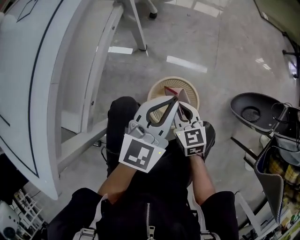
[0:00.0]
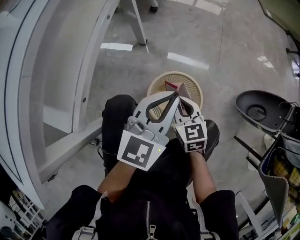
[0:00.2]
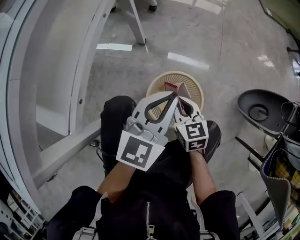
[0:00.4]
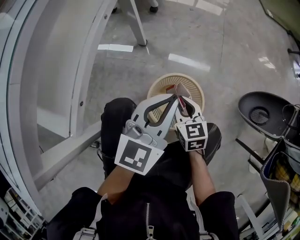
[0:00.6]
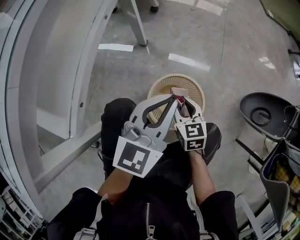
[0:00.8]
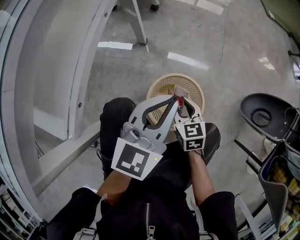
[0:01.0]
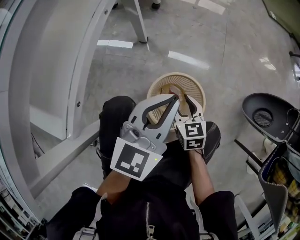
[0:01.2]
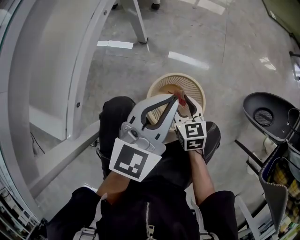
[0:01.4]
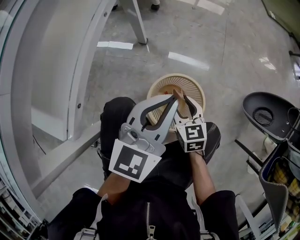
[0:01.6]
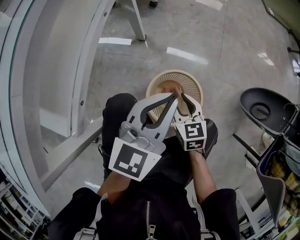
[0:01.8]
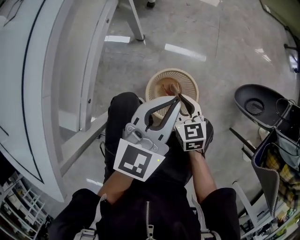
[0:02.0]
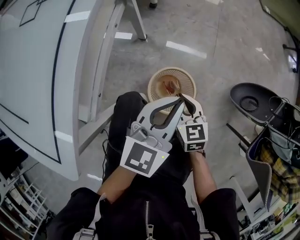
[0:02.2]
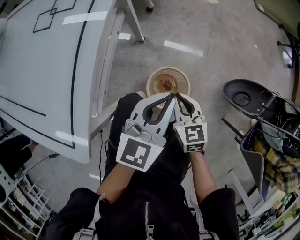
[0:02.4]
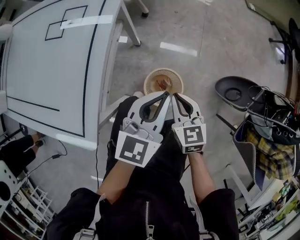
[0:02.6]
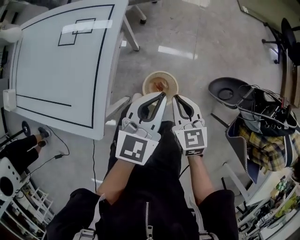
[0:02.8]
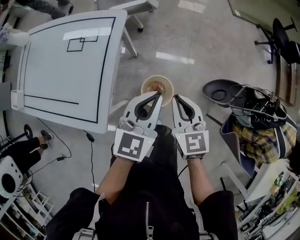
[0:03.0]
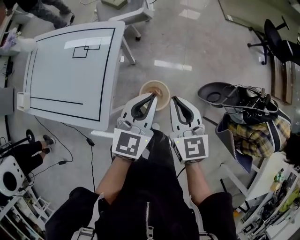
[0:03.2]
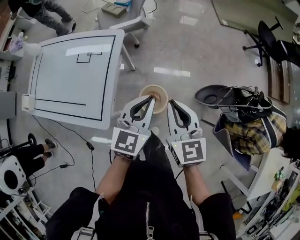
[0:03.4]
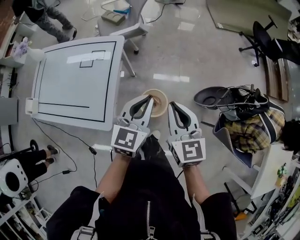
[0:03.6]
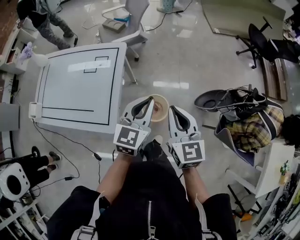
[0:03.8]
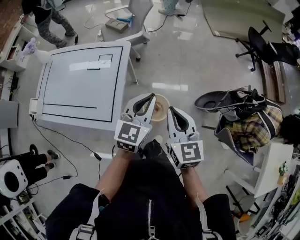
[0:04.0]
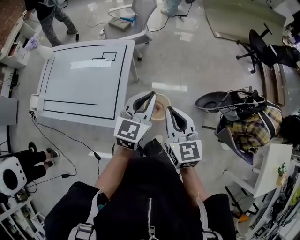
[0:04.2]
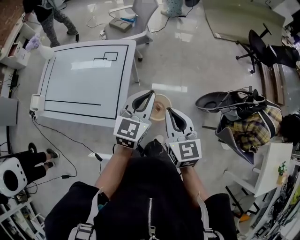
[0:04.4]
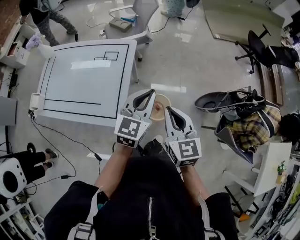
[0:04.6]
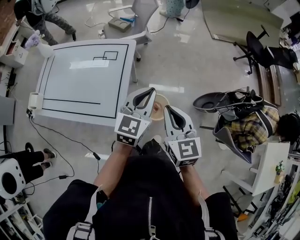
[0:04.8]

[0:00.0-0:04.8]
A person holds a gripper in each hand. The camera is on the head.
0:00.0 to 0:01.6: The right gripper goes some 10 cm downward, and opens its fingers.
0:01.6 to 0:03.2: The grippers both shift upward by about 60 cm. The right gripper closes up.
0:03.2 to 0:04.8: The right gripper goes about 15 cm backward, upward and to the left, while the left gripper is displaced upward, to the left and backward by some 10 cm.

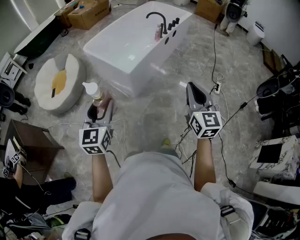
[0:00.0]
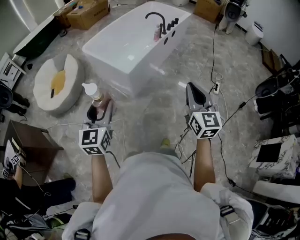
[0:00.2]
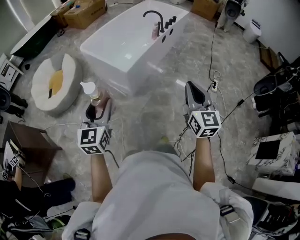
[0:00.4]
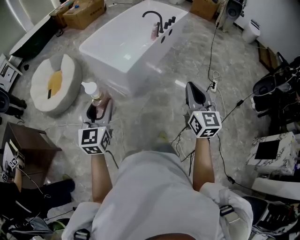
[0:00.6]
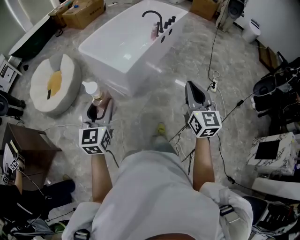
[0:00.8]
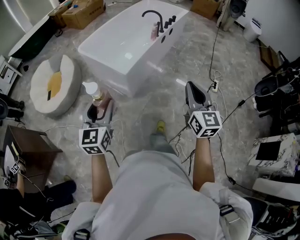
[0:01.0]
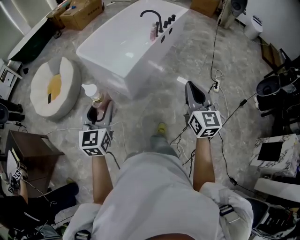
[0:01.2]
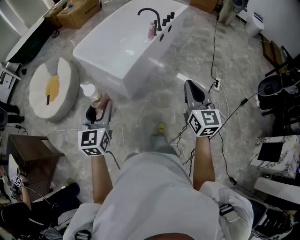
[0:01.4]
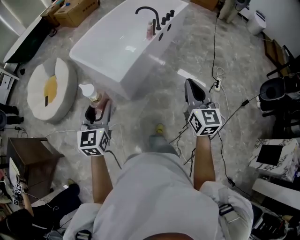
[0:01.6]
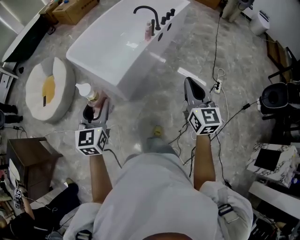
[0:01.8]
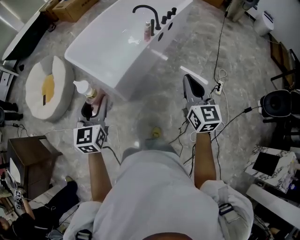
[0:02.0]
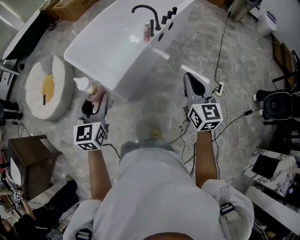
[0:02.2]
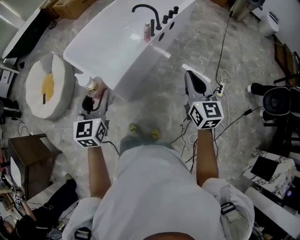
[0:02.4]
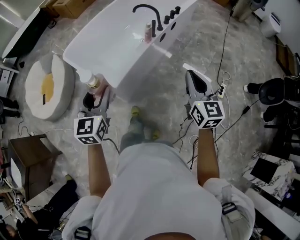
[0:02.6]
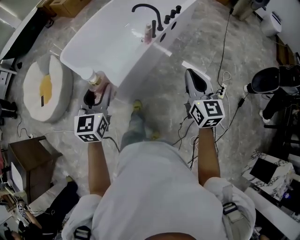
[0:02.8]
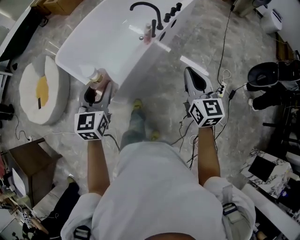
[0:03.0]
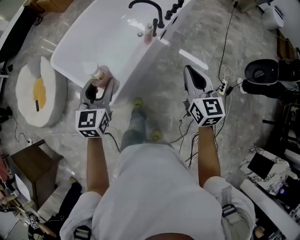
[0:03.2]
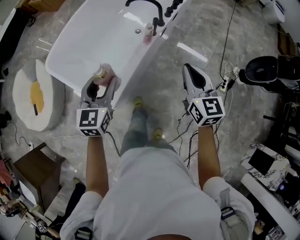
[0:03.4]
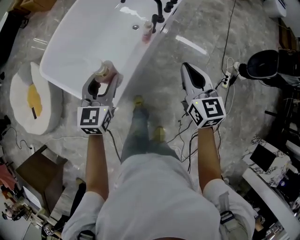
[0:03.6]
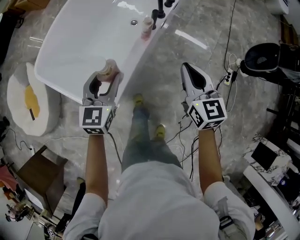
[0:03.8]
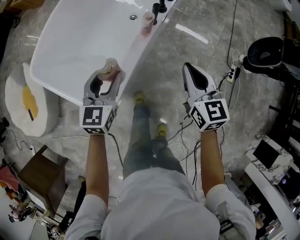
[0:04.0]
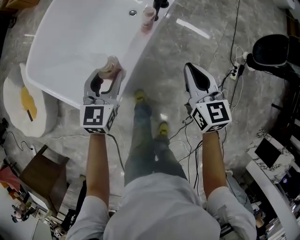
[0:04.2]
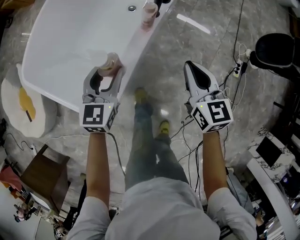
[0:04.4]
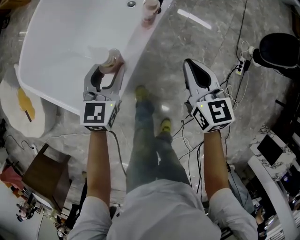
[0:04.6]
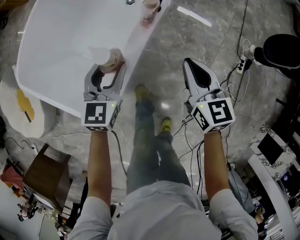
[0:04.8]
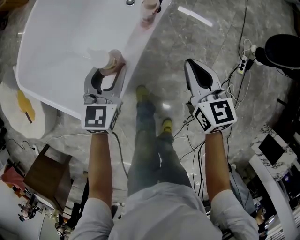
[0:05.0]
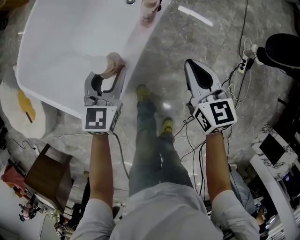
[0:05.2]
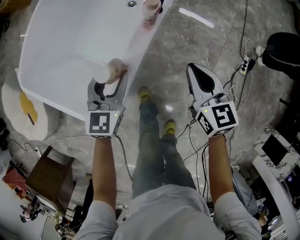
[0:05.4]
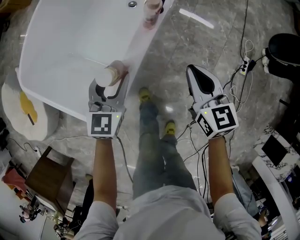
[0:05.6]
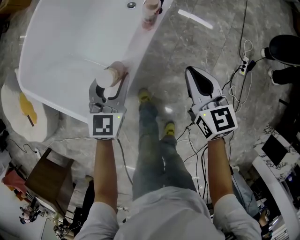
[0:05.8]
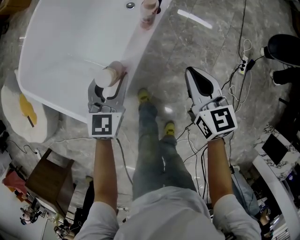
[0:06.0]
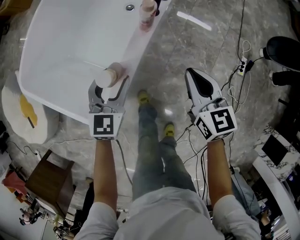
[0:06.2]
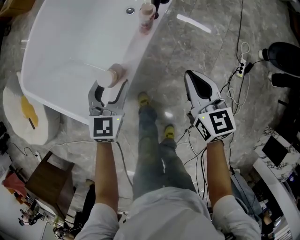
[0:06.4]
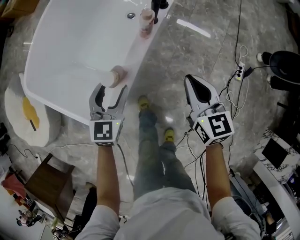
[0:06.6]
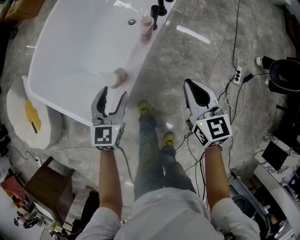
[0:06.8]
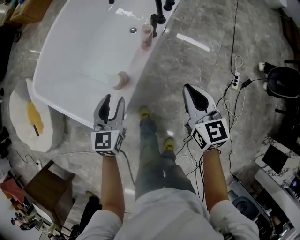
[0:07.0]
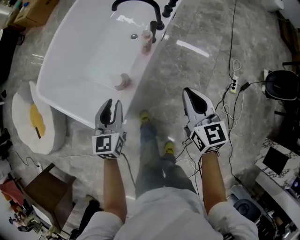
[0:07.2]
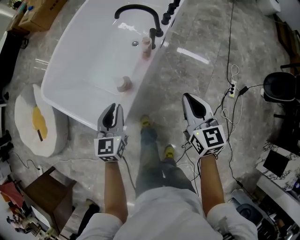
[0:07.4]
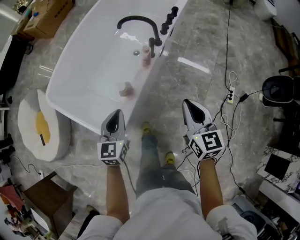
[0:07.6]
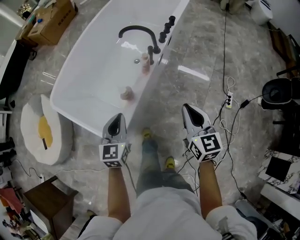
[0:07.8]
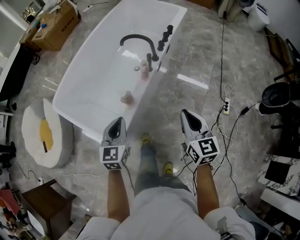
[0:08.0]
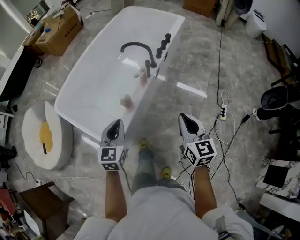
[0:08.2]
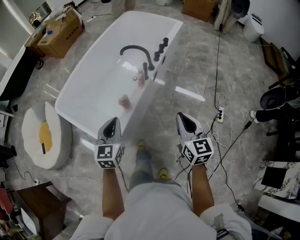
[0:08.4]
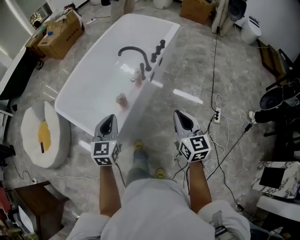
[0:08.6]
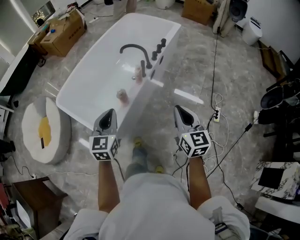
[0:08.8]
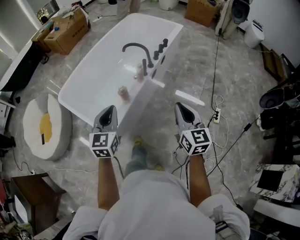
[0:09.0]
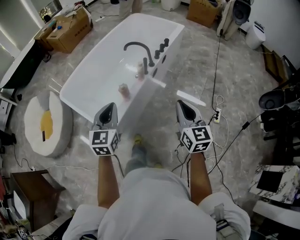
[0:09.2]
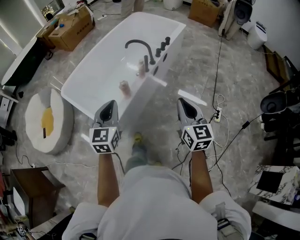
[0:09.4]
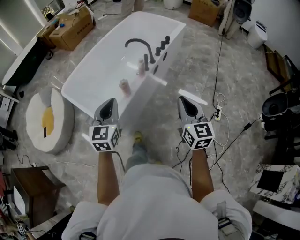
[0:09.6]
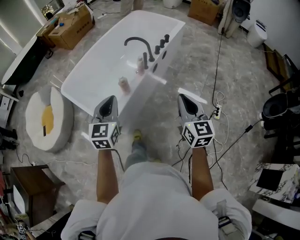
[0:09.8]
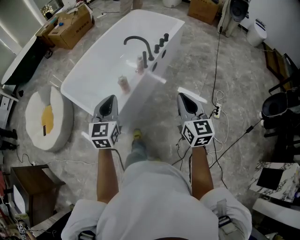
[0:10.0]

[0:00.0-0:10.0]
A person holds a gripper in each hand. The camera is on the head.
0:00.0 to 0:01.4: Both grippers move forward, about 15 cm.
0:01.4 to 0:02.8: The grippers both shift forward by approximately 35 cm.
0:02.8 to 0:04.2: Both grippers move forward and downward, some 40 cm.
0:04.2 to 0:05.8: Both grippers travel together downward, some 10 cm.
0:05.8 to 0:07.2: Both grippers move upward and backward, some 15 cm. The left gripper closes.
0:07.2 to 0:08.6: The two grippers go roughly 25 cm upward and backward. The left gripper closes its fingers.
0:08.6 to 0:10.0: Both grippers move backward and upward, some 10 cm.

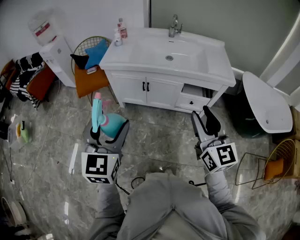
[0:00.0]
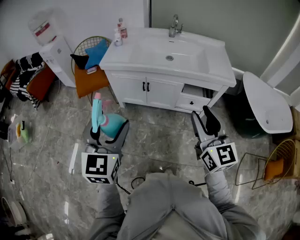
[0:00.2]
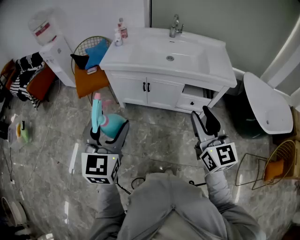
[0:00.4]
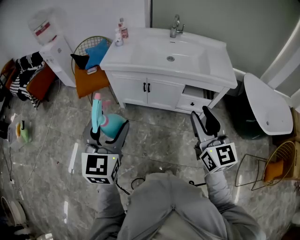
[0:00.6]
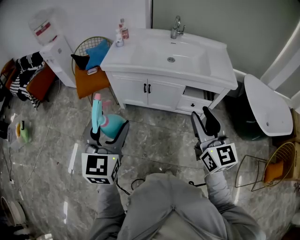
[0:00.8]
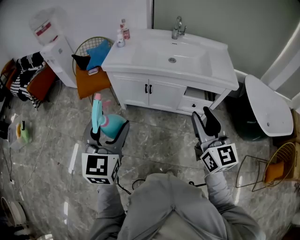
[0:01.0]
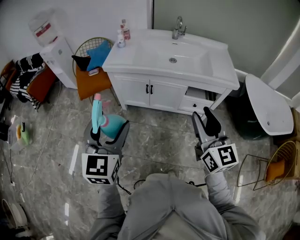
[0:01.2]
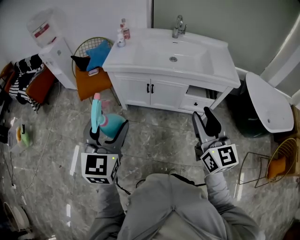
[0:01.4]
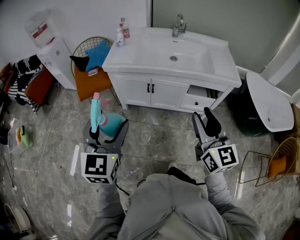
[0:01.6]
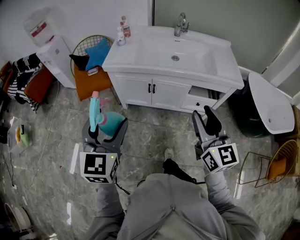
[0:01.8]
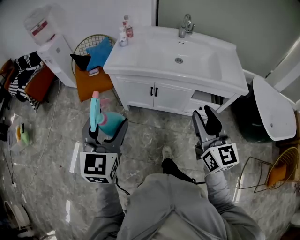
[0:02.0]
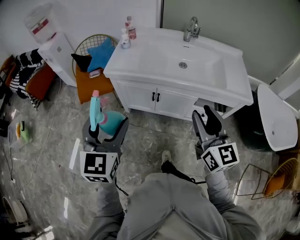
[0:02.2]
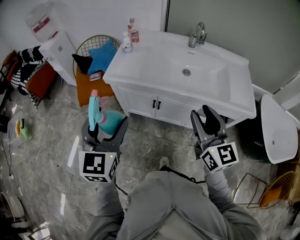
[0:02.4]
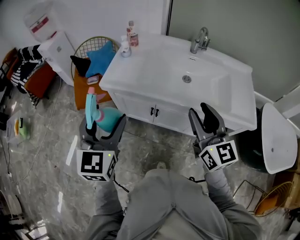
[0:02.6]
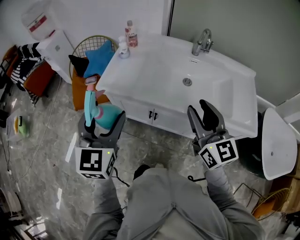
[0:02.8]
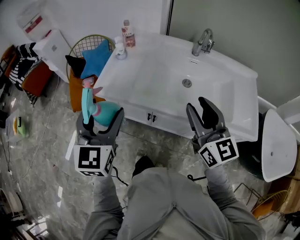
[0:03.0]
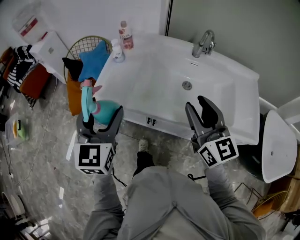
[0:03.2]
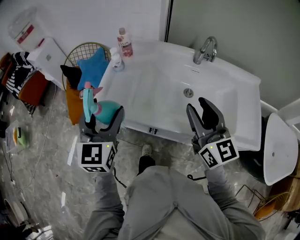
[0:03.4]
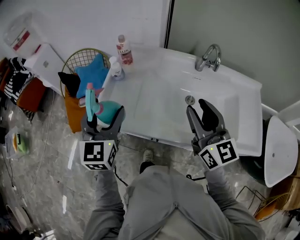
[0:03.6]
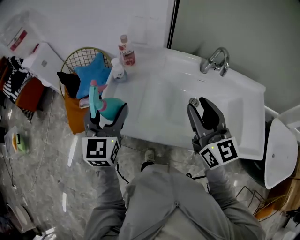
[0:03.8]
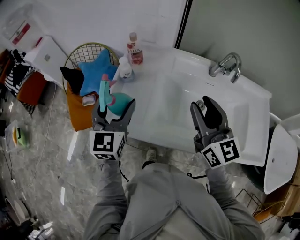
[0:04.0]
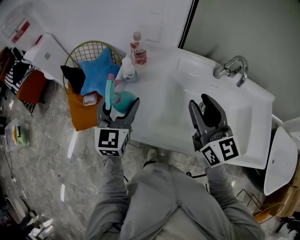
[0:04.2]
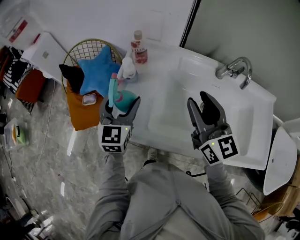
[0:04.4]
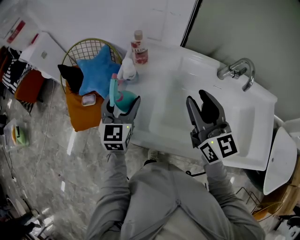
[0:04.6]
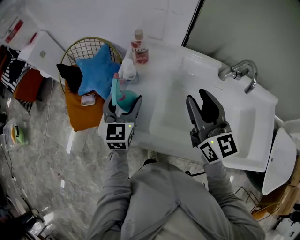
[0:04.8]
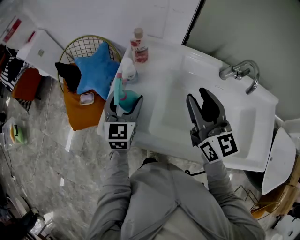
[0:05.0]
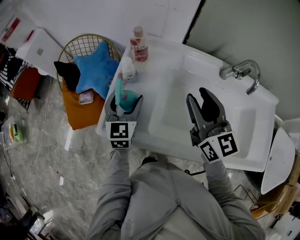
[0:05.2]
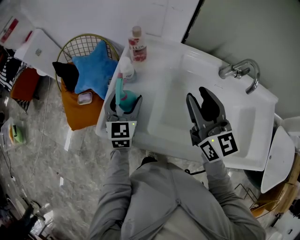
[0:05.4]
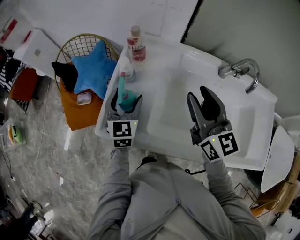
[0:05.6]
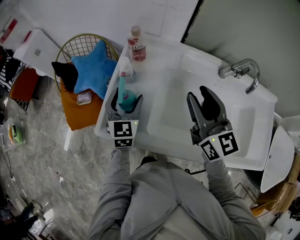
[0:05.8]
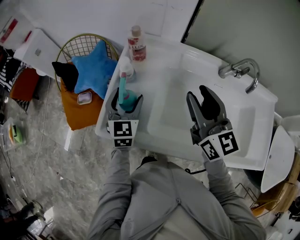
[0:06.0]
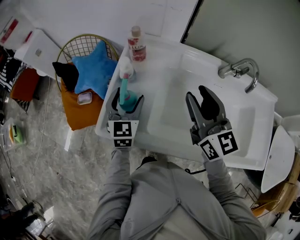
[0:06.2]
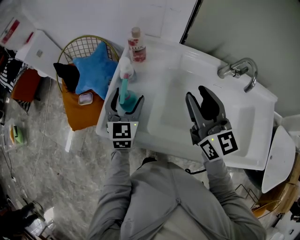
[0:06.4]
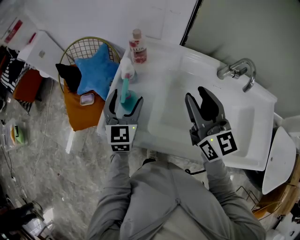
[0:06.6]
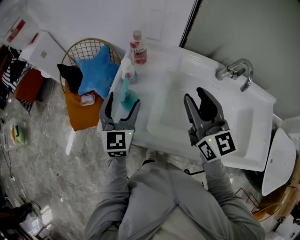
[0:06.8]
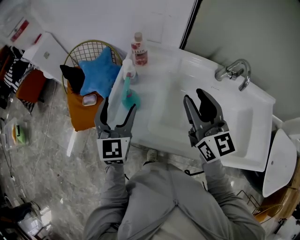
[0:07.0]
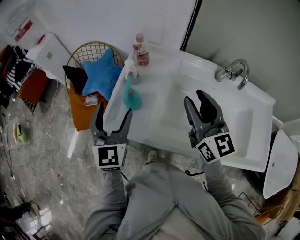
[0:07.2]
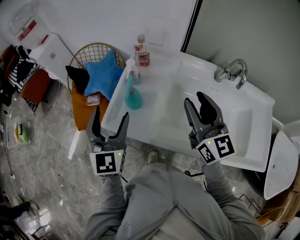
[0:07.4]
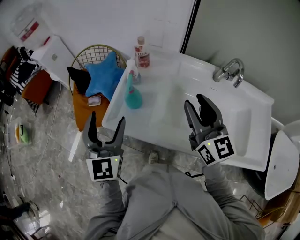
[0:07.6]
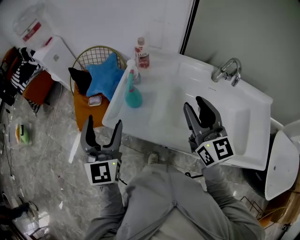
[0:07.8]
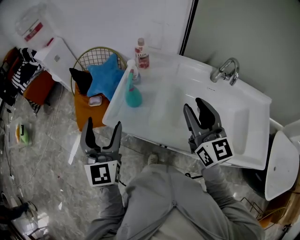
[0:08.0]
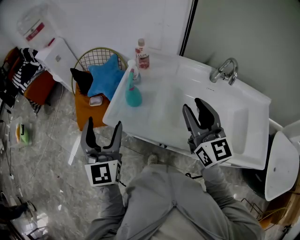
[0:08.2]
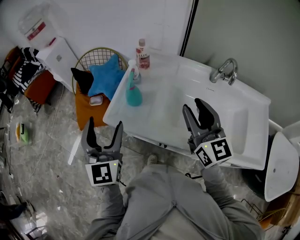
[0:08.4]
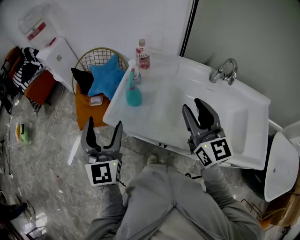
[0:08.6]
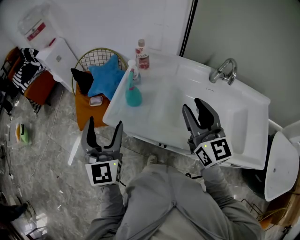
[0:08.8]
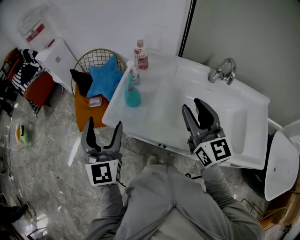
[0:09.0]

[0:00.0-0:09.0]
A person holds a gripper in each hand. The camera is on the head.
0:00.0 to 0:01.6: The left gripper moves about 5 cm, while the right gripper moves approximately 5 cm.
0:01.6 to 0:03.0: The grippers both shift forward by roughly 35 cm.
0:03.0 to 0:04.4: The right gripper heads forward, covering approximately 25 cm, while the left gripper travels forward and downward by about 30 cm.
0:04.4 to 0:06.0: The left gripper goes about 5 cm downward.
0:06.0 to 0:07.6: The left gripper shifts some 25 cm upward, backward and to the left. Meanwhile the right gripper goes some 10 cm backward.
0:07.6 to 0:09.0: The grippers make only small movements.
